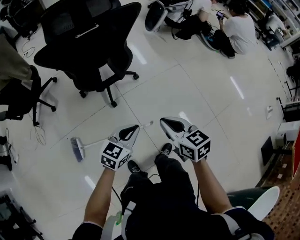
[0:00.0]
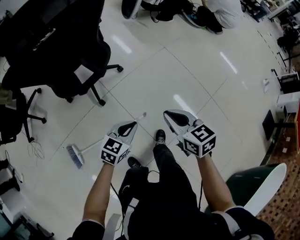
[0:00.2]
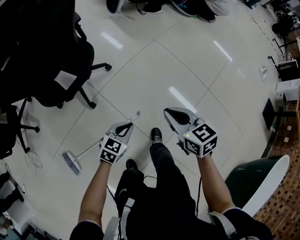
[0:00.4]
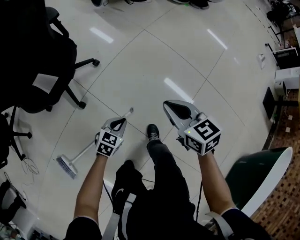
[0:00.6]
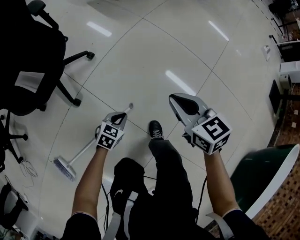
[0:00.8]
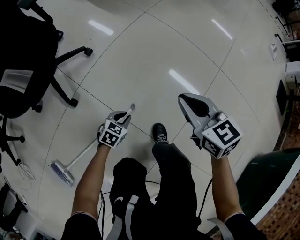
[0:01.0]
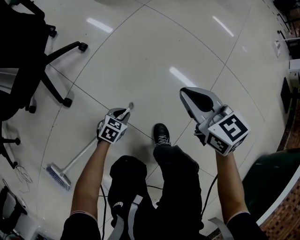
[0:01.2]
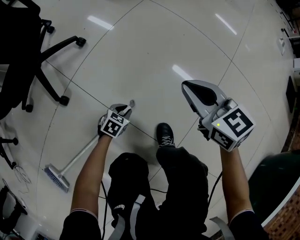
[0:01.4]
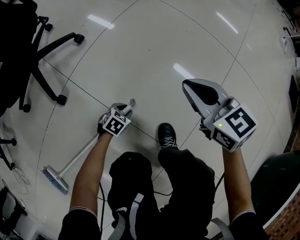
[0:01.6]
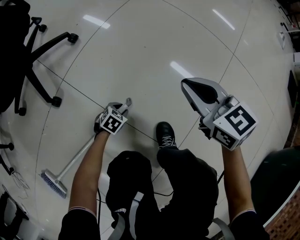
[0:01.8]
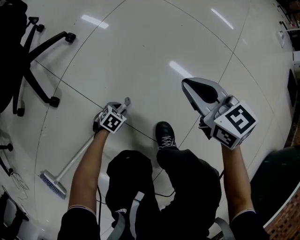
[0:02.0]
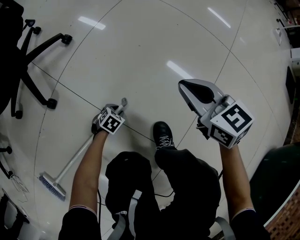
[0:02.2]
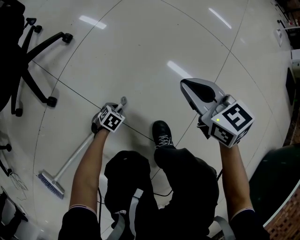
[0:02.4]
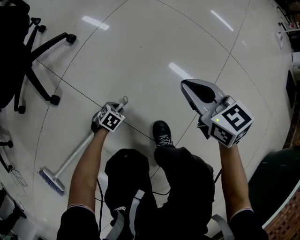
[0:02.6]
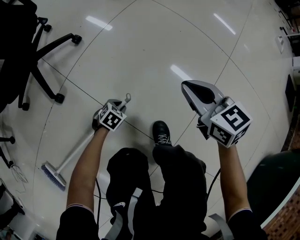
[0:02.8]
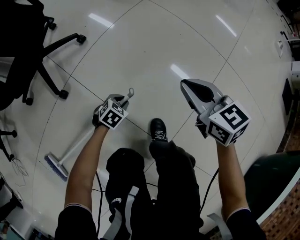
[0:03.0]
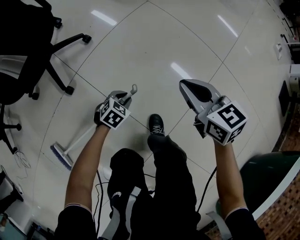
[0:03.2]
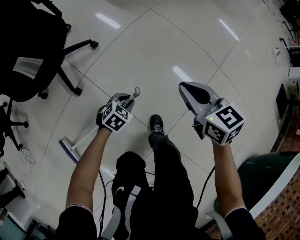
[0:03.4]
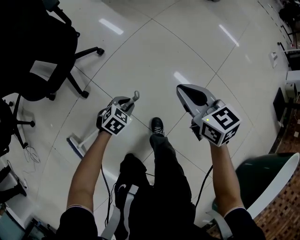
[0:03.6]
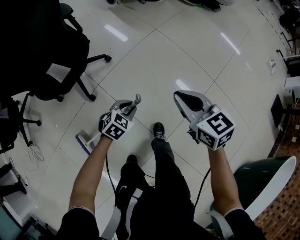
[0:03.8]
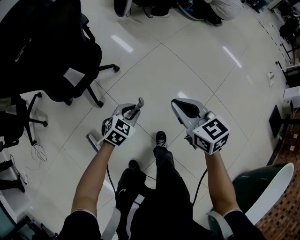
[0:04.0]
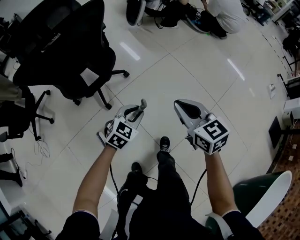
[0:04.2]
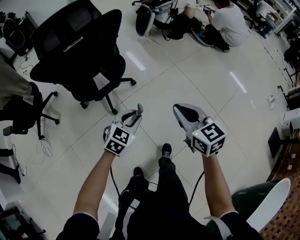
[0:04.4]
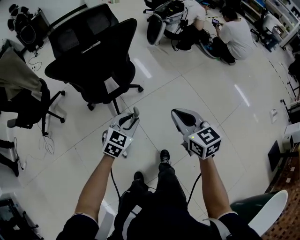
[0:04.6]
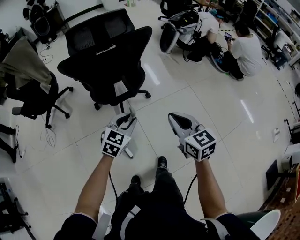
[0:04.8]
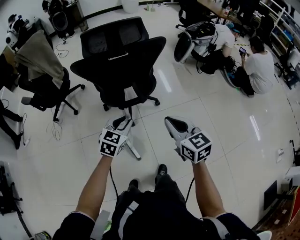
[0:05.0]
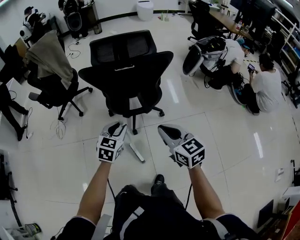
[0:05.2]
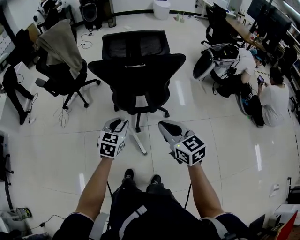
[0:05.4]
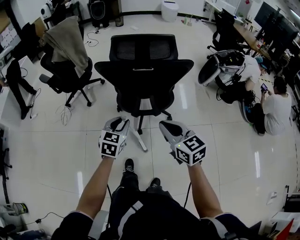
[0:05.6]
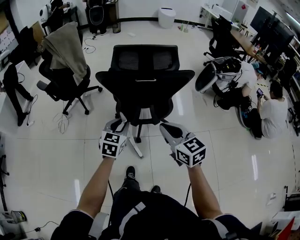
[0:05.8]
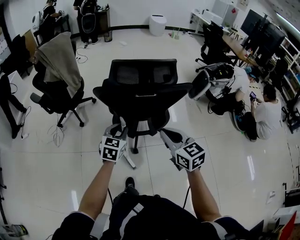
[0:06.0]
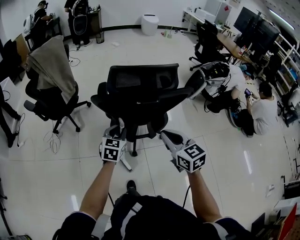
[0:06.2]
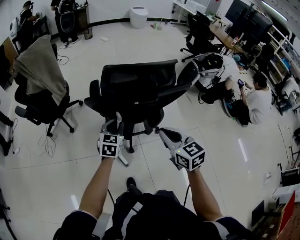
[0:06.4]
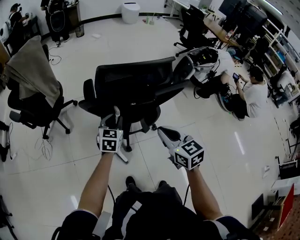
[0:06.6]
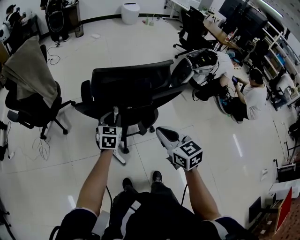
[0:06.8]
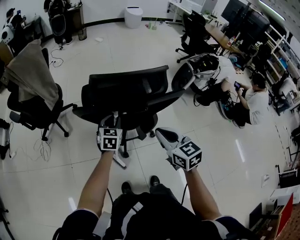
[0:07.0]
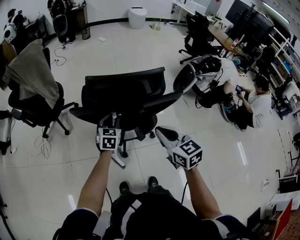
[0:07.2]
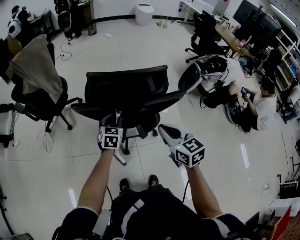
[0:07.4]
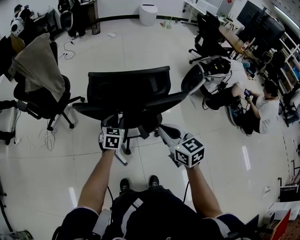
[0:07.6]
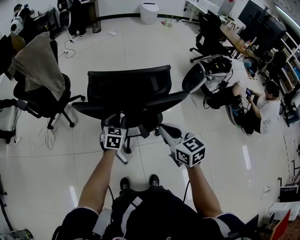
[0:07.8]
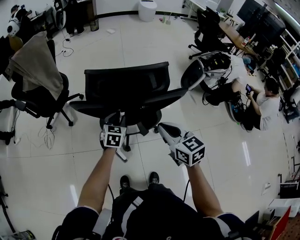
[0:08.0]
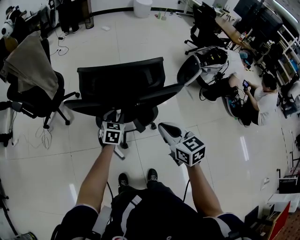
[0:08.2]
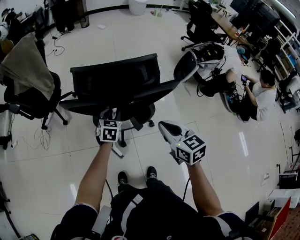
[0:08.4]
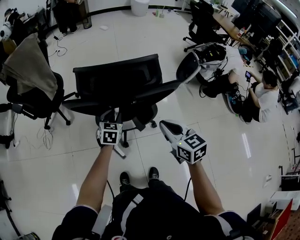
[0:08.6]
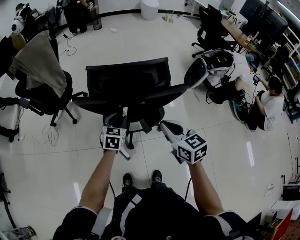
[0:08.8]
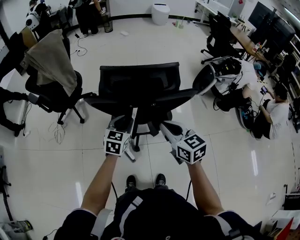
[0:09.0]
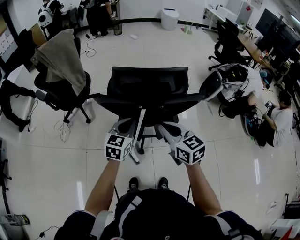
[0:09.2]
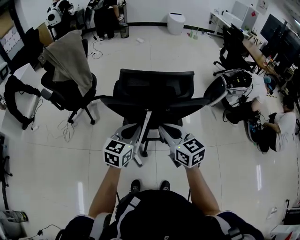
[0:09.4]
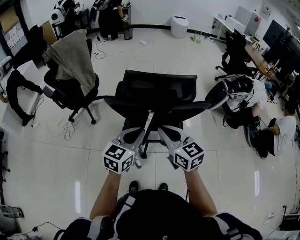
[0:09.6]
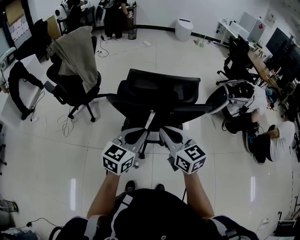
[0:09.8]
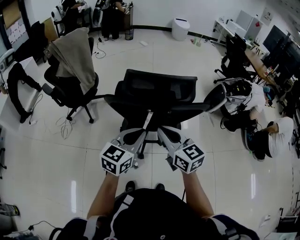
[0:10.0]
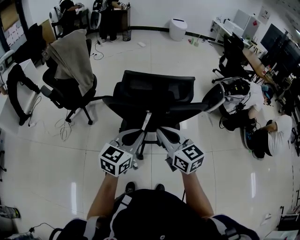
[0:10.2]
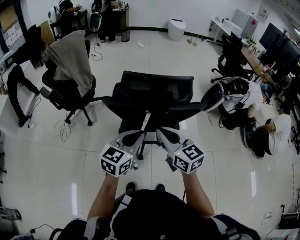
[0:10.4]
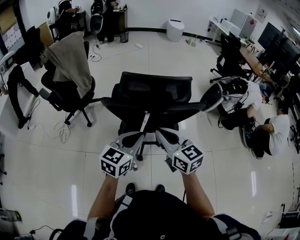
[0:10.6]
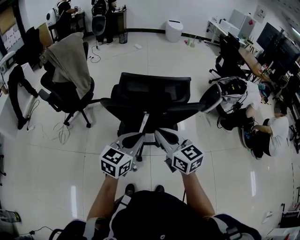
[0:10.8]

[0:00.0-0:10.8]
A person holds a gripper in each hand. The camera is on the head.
0:00.0 to 0:01.6: The right gripper shifts about 40 cm downward, and changes its angle by roughly 20 degrees; the left gripper is displaced downward by some 70 cm, tips its fingers downward by some 40 degrees, and opens.
0:01.6 to 0:03.0: The right gripper ends up about 5 cm from where it was, while the left gripper moves upward, some 10 cm.
0:03.0 to 0:04.6: The two grippers go about 50 cm upward. The left gripper rotates roughly 40 degrees.
0:04.6 to 0:06.2: The right gripper changes place by about 30 cm, and swivels approximately 20 degrees, while the left gripper moves about 30 cm, and swivels approximately 40 degrees.
0:06.2 to 0:07.8: The grippers both shift forward and to the right by about 10 cm.
0:07.8 to 0:09.2: The left gripper heads upward and backward, covering about 15 cm, and closes. The right gripper moves to the left, about 5 cm.
0:09.2 to 0:10.8: The right gripper changes place by about 5 cm. The left gripper heads backward and upward, covering about 10 cm.

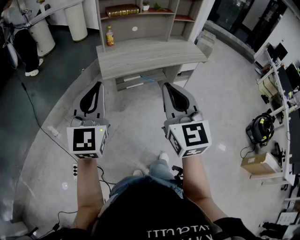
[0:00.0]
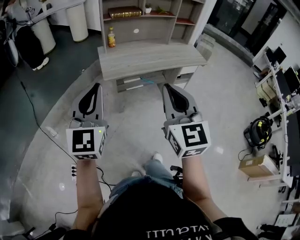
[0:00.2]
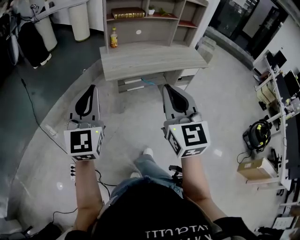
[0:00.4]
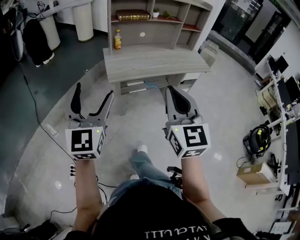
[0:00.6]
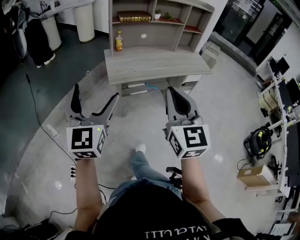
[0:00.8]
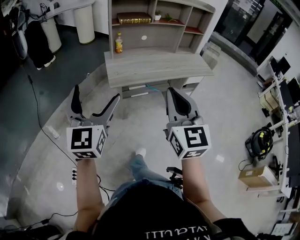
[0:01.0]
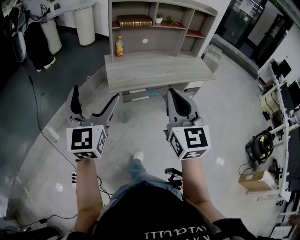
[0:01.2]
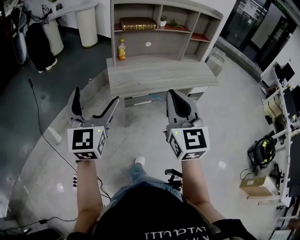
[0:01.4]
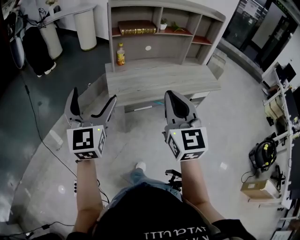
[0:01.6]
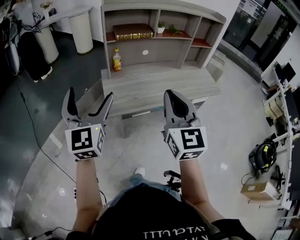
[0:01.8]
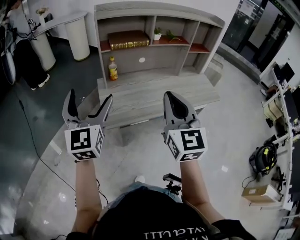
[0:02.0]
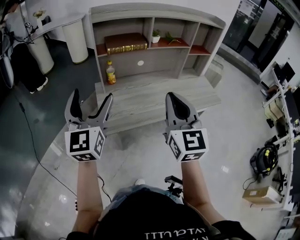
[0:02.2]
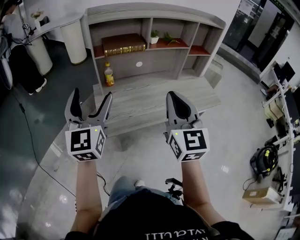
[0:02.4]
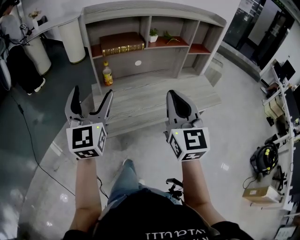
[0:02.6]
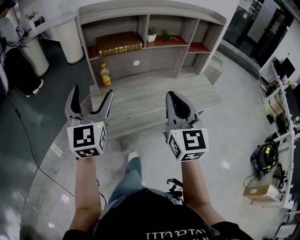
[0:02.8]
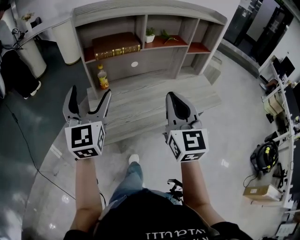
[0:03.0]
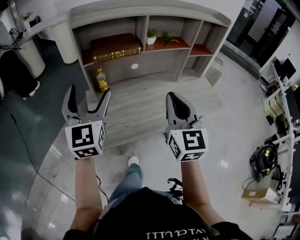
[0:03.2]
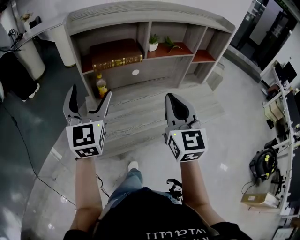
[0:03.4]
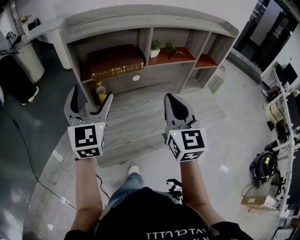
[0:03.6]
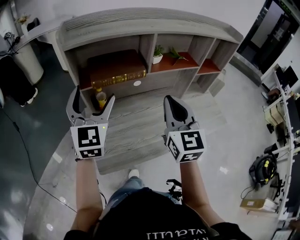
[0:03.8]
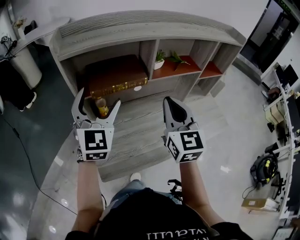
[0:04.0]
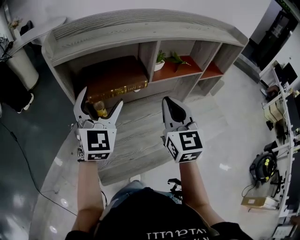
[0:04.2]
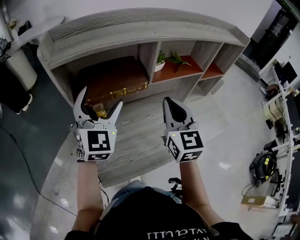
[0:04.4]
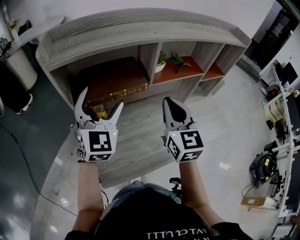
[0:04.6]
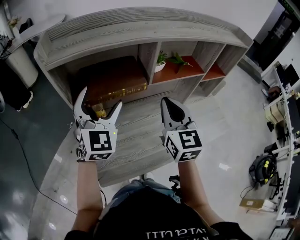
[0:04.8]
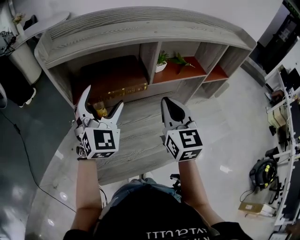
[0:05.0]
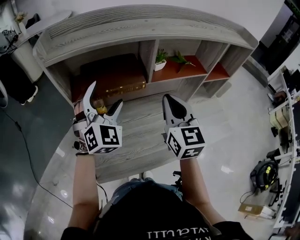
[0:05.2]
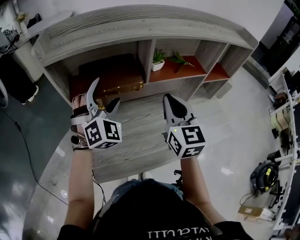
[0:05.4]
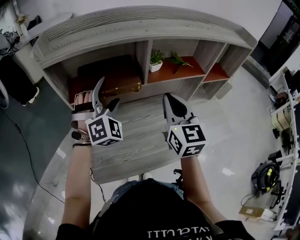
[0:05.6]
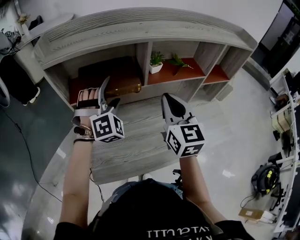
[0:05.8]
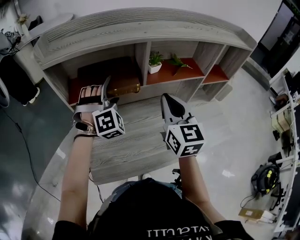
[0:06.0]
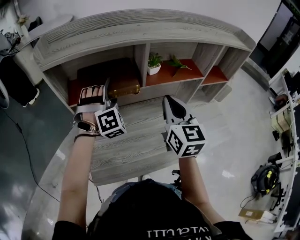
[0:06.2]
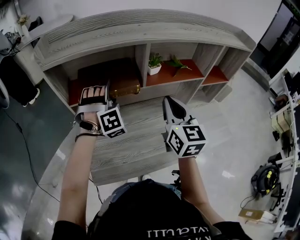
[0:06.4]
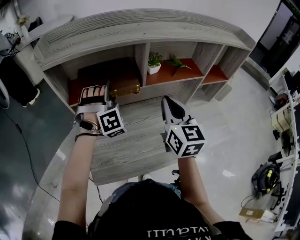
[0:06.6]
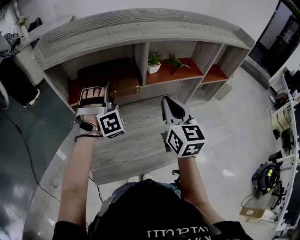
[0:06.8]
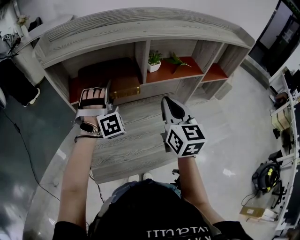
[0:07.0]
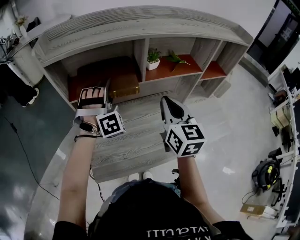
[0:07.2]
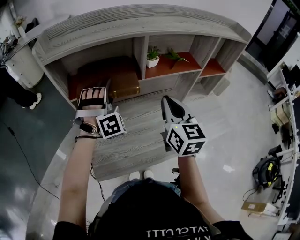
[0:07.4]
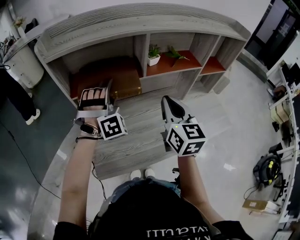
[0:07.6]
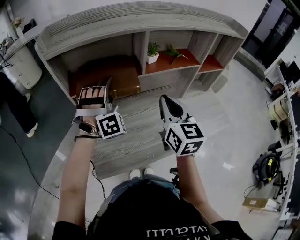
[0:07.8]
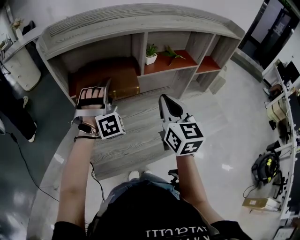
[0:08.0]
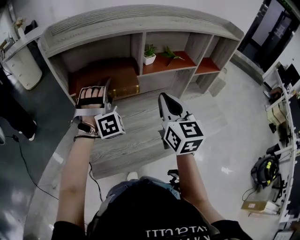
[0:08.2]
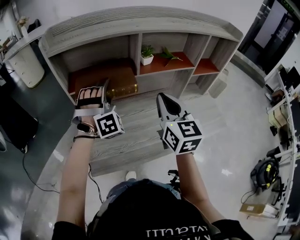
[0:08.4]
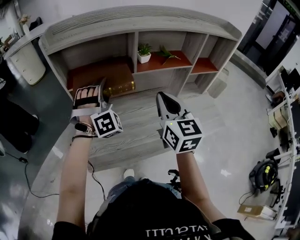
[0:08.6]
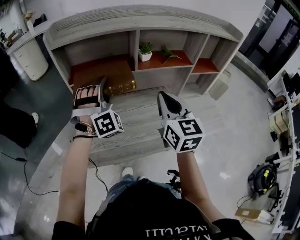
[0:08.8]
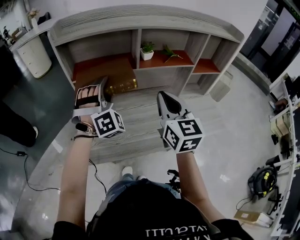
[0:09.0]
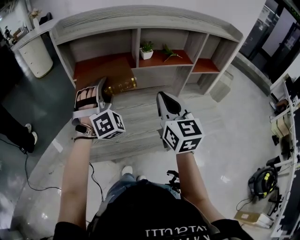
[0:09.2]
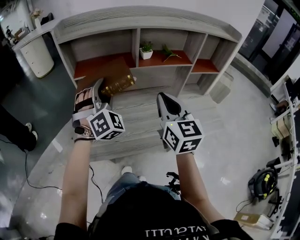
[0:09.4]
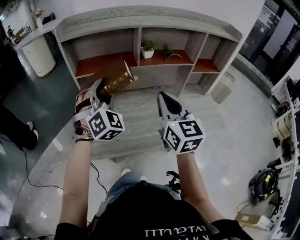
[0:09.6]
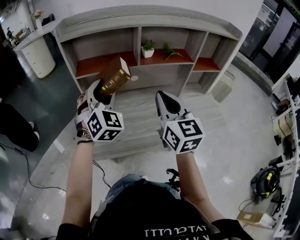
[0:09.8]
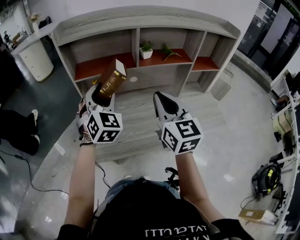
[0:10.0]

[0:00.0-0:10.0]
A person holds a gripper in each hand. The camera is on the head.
0:00.0 to 0:01.4: The right gripper moves forward, approximately 15 cm; the left gripper moves forward and to the left, some 15 cm, and opens its fingers.
0:01.4 to 0:02.8: The grippers both shift forward by about 30 cm.
0:02.8 to 0:04.2: Both grippers travel together forward, some 25 cm.
0:04.2 to 0:05.8: The right gripper shifts by some 5 cm, while the left gripper moves downward, forward and to the right, approximately 10 cm, and rotates around the line of its fingers by some 50 degrees, clockwise from behind.
0:05.8 to 0:07.2: There are only small adjustments of the grippers.
0:07.2 to 0:08.6: Both grippers move backward, roughly 5 cm.
0:08.6 to 0:10.0: Both grippers move backward, approximately 5 cm. The left gripper twists about 40 degrees counterclockwise, seen from behind.

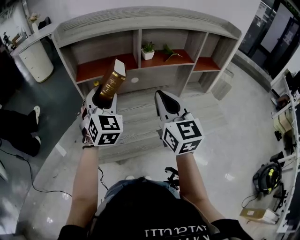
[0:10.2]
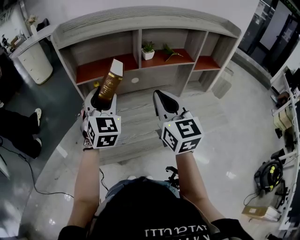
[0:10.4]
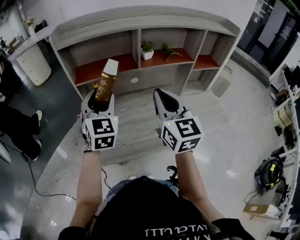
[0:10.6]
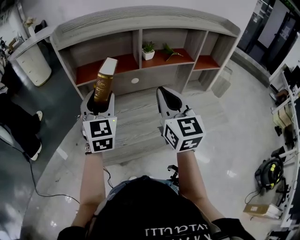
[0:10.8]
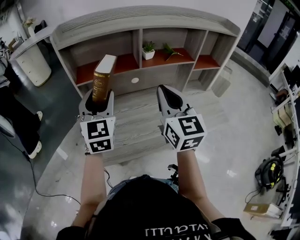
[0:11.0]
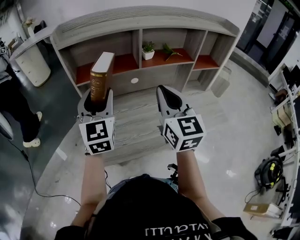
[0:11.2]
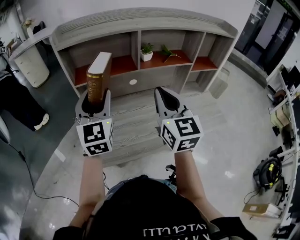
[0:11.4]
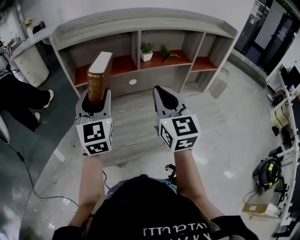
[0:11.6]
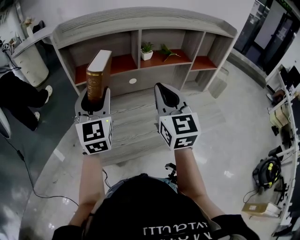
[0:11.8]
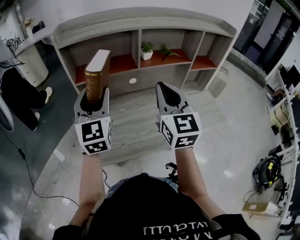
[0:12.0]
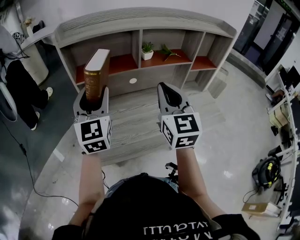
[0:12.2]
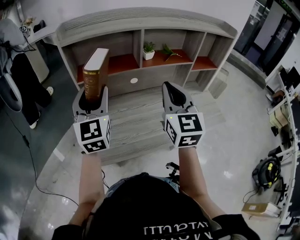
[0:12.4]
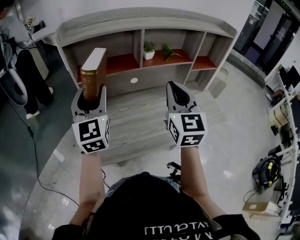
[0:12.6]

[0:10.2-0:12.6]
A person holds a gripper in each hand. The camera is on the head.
0:10.2 to 0:11.4: The left gripper shifts by about 5 cm, and rotates about 30 degrees.
0:11.4 to 0:12.6: There are only small adjustments of the grippers.
